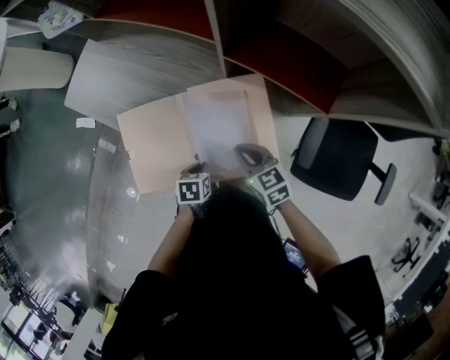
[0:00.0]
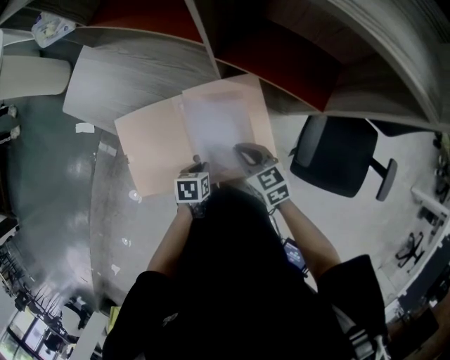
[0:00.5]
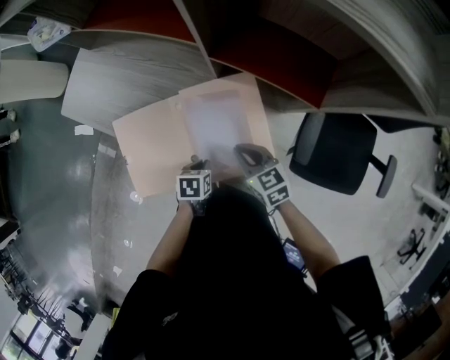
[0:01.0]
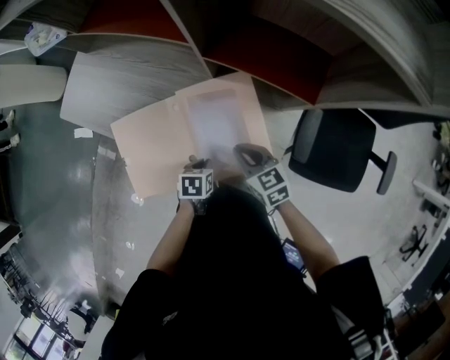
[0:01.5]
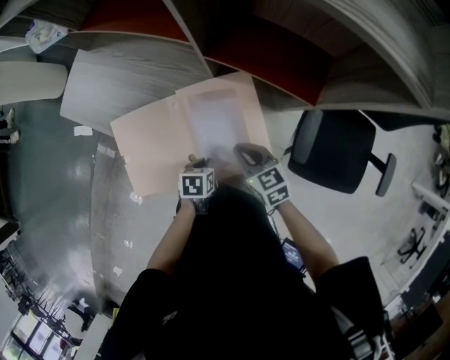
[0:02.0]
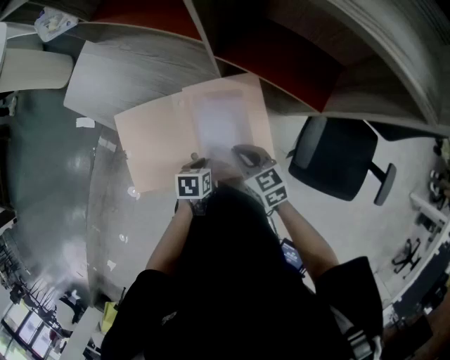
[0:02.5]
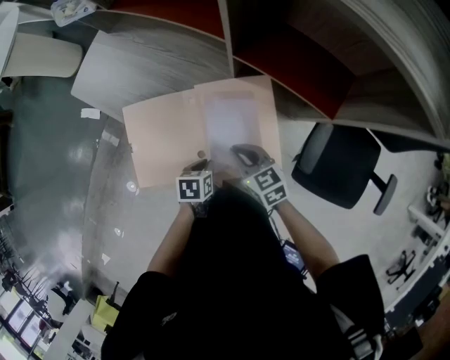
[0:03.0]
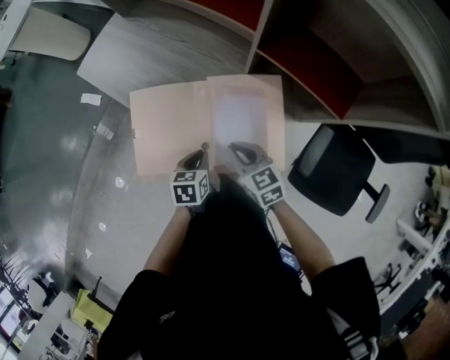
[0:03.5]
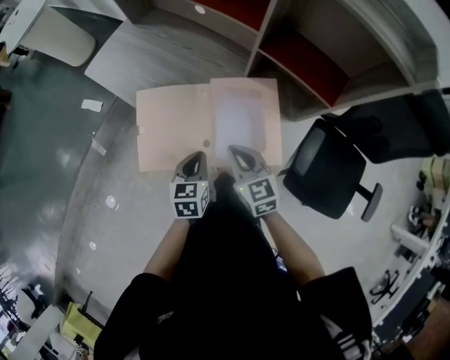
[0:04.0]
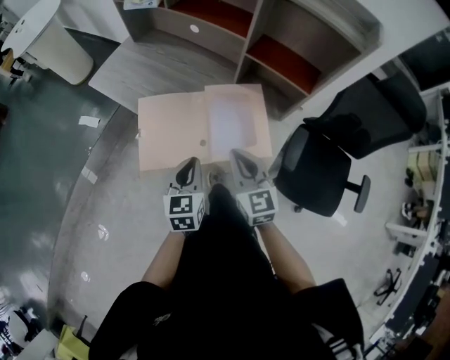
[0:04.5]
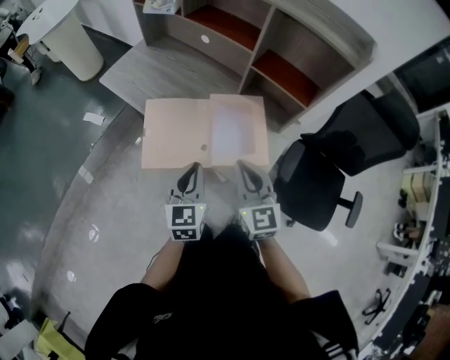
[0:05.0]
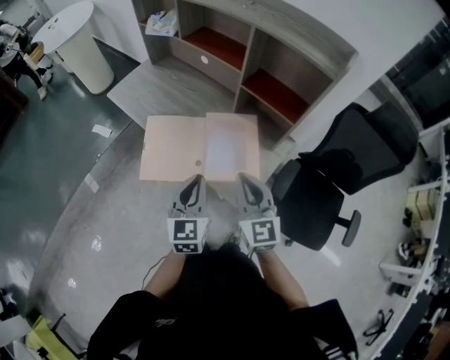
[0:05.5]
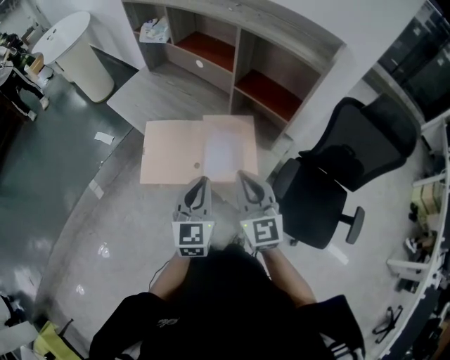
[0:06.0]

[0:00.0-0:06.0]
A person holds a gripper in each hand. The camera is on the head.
0:00.0 to 0:02.0: There are only small adjustments of the grippers.
0:02.0 to 0:04.0: The left gripper shifts some 15 cm upward and to the left, and changes its angle by approximately 40 degrees. The right gripper is displaced to the left and upward by some 10 cm.
0:04.0 to 0:06.0: The grippers both shift upward and backward by roughly 25 cm. The right gripper swivels approximately 30 degrees. The left gripper changes its angle by approximately 30 degrees.

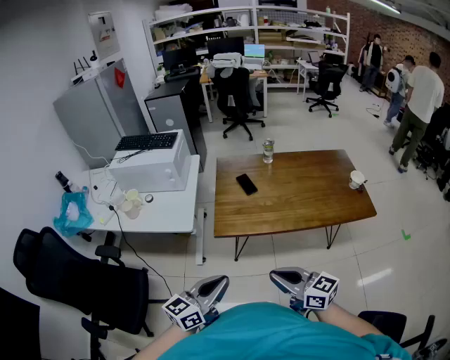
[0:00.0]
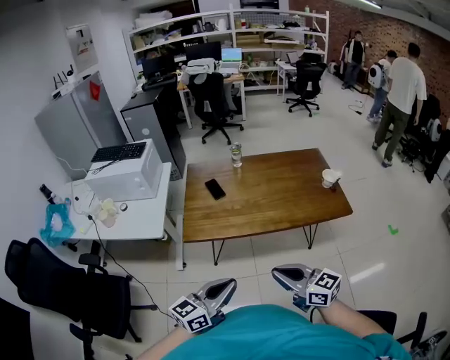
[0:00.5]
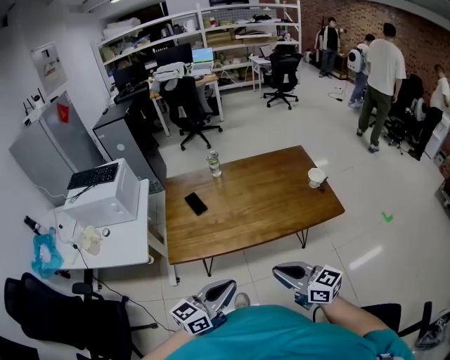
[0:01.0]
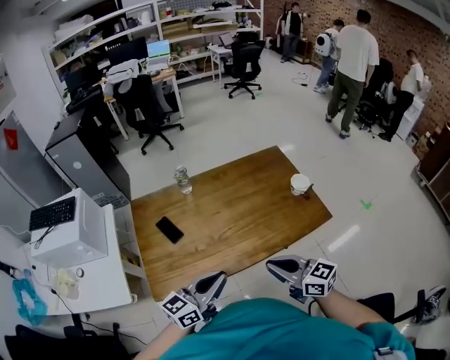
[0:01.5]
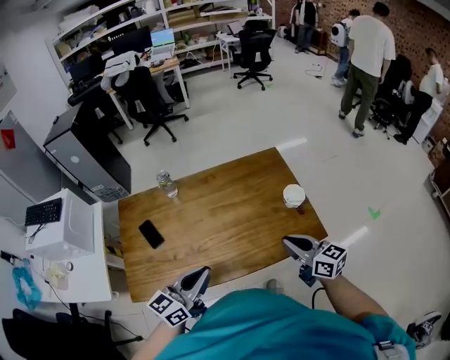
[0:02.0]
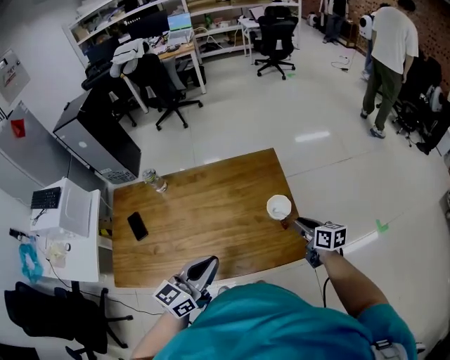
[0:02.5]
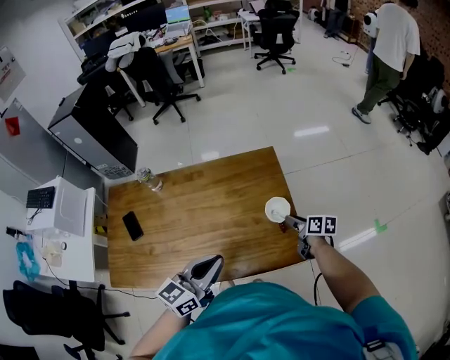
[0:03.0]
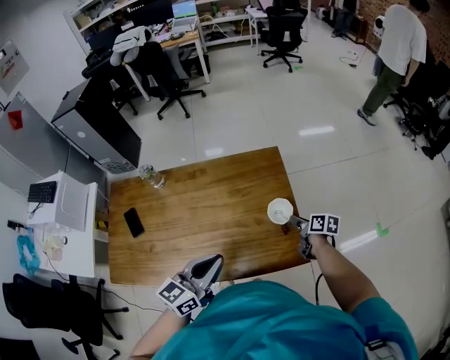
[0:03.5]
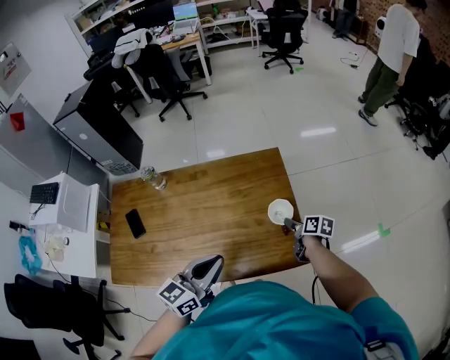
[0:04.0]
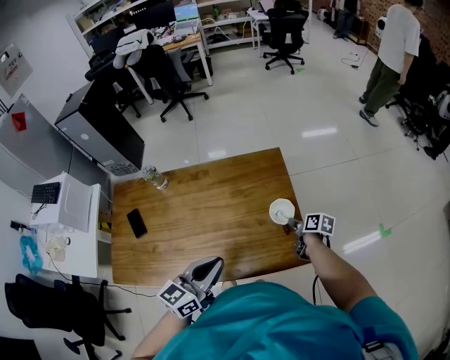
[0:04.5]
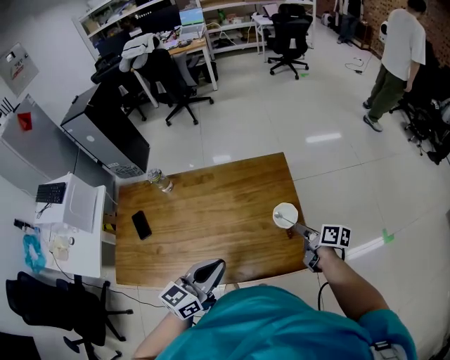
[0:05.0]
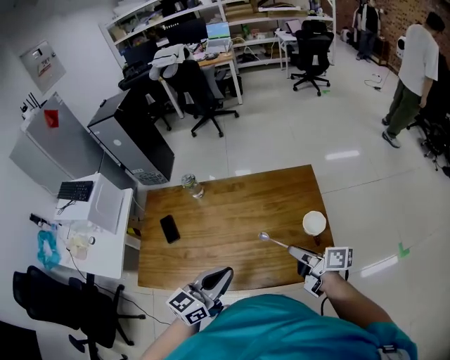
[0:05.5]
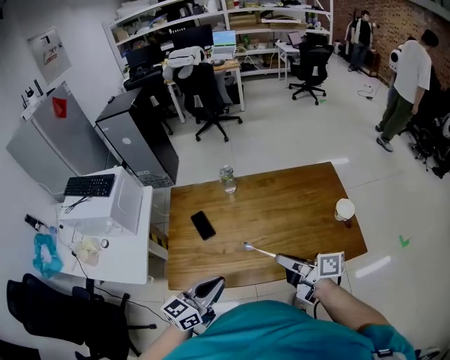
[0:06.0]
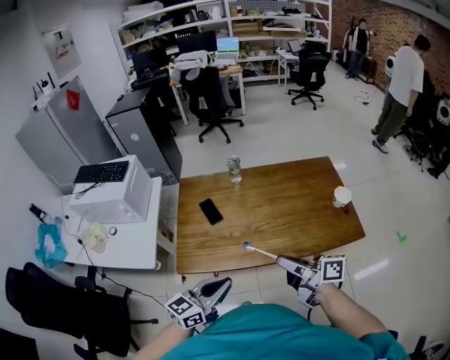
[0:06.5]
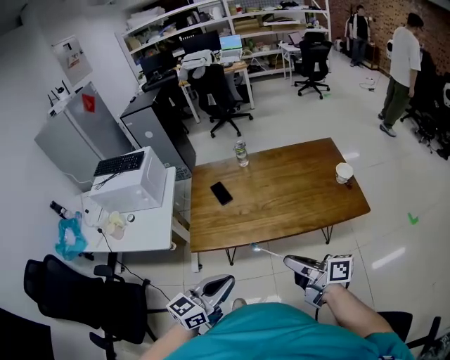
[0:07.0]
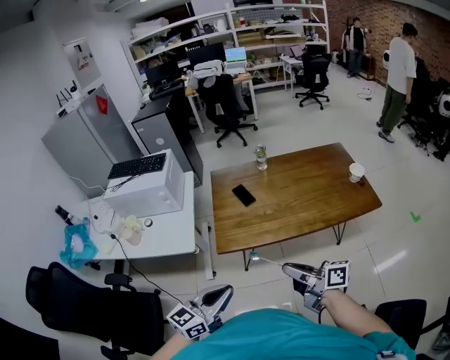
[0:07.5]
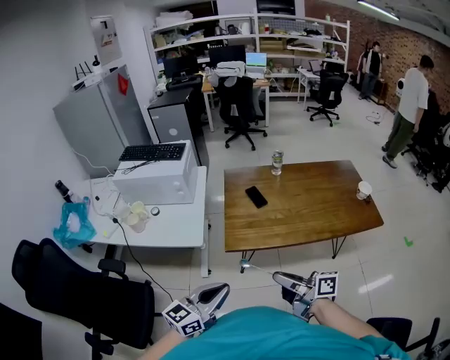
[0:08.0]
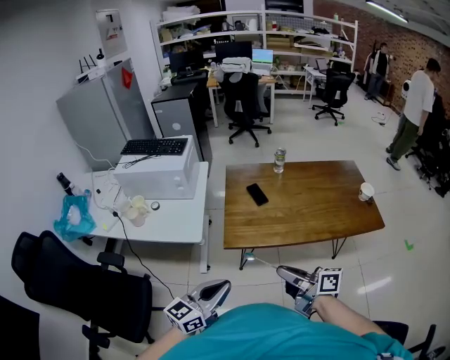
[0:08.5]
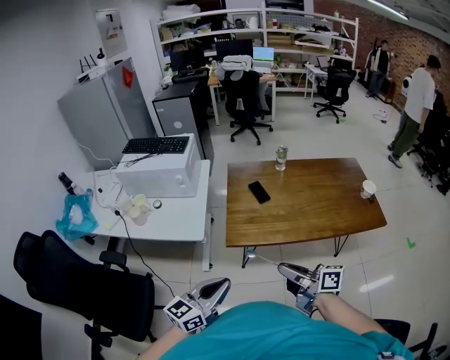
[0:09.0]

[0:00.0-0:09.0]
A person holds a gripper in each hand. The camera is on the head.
0:00.0 to 0:02.0: The two grippers travel together, forward and to the right, roughly 60 cm. The right gripper rotates roughly 20 degrees.
0:02.0 to 0:04.5: The right gripper moves forward, downward and to the right, approximately 40 cm, rolls clockwise, seen from behind, by approximately 40 degrees, and opens, then closes again; the left gripper moves to the right and forward, some 25 cm.
0:04.5 to 0:07.0: Both grippers are carried backward and to the left, approximately 60 cm. The right gripper is displaced upward by roughly 35 cm, and tilts its fingers some 40 degrees upward.
0:07.0 to 0:09.0: Both grippers travel together to the left, roughly 25 cm.

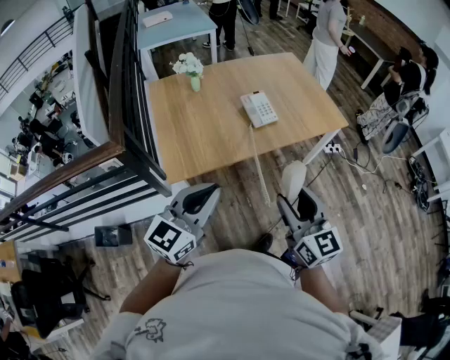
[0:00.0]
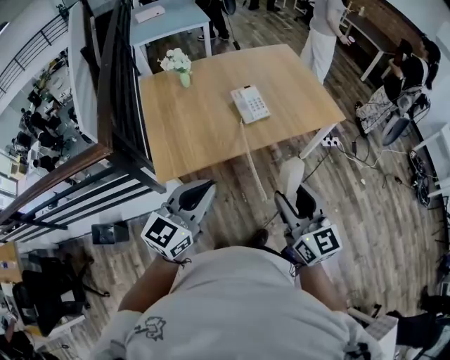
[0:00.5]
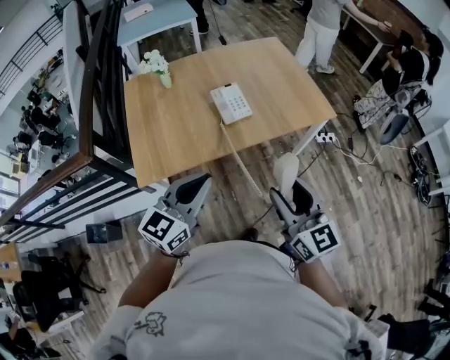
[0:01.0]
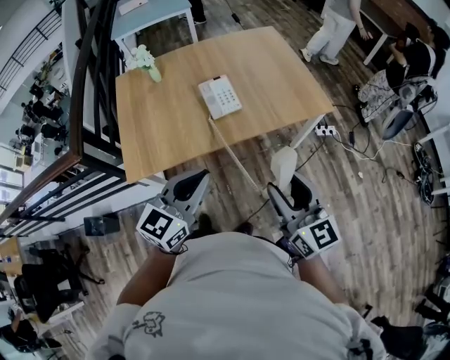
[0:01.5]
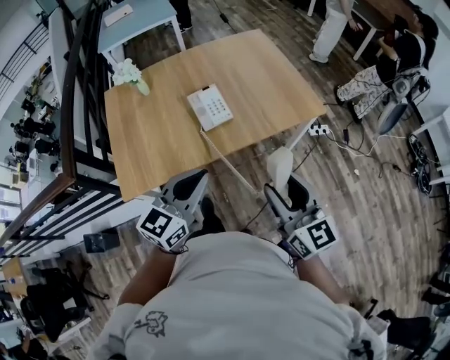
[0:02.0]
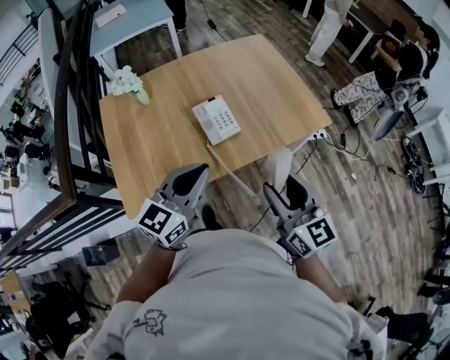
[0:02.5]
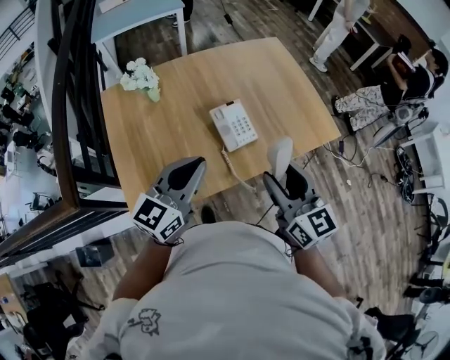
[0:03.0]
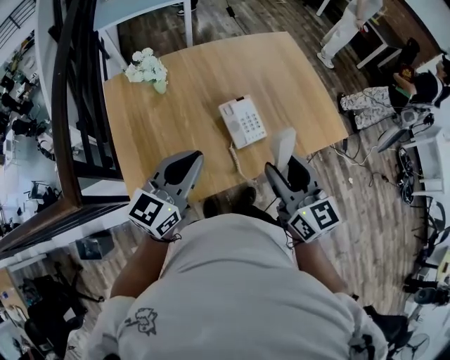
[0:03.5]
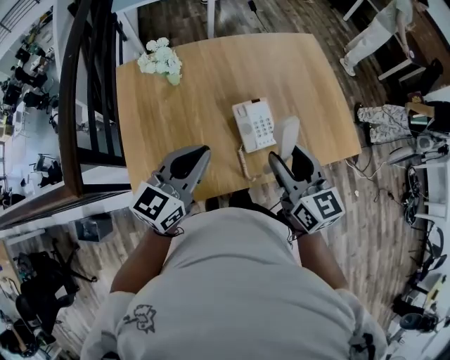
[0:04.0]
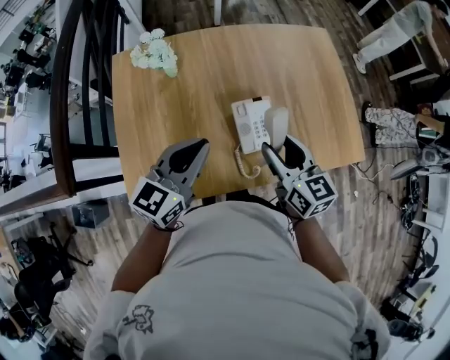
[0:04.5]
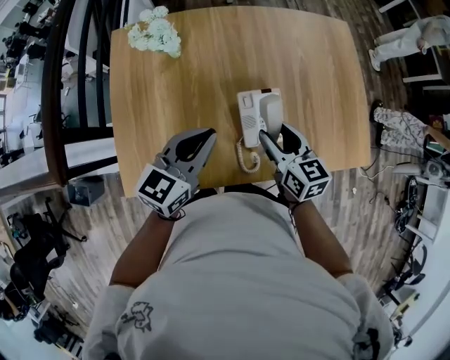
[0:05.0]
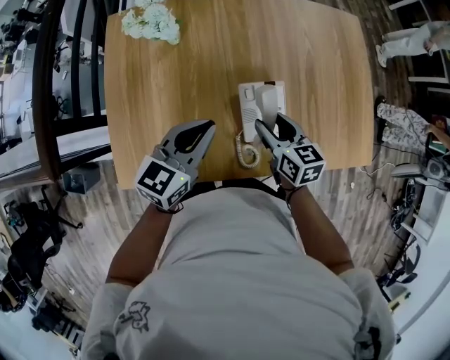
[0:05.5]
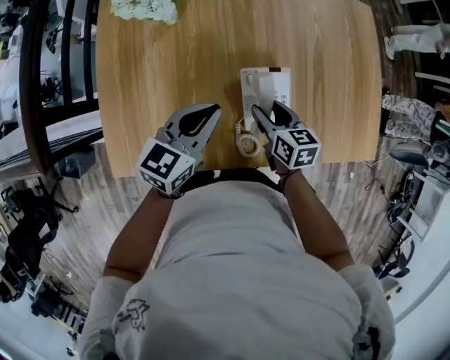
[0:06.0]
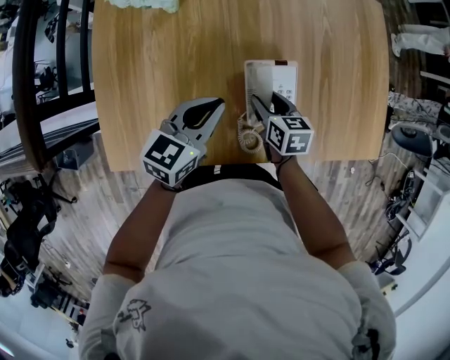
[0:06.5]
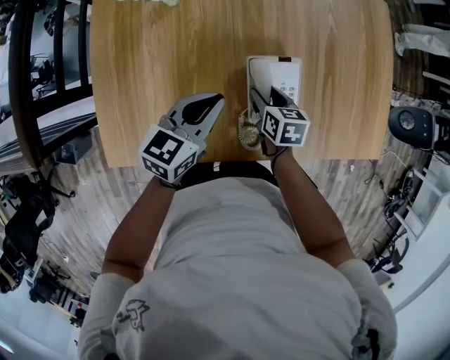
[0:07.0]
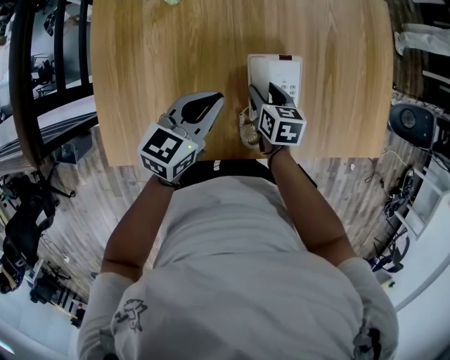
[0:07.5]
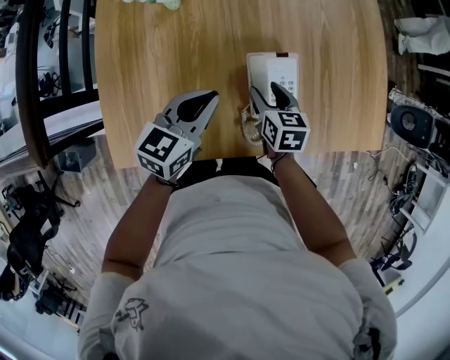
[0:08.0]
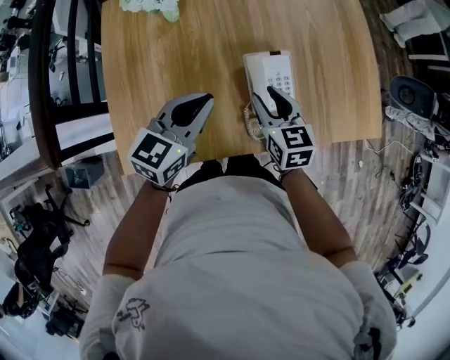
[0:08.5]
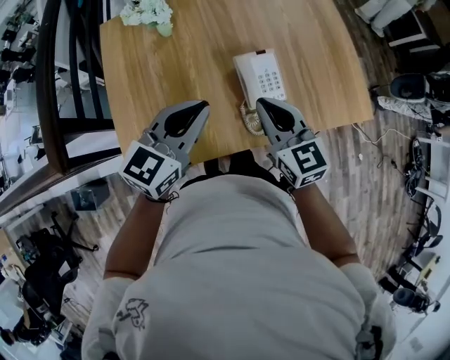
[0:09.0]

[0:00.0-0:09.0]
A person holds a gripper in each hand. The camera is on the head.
0:00.0 to 0:02.0: Both grippers travel together to the right and forward, approximately 25 cm.
0:02.0 to 0:04.5: The grippers both shift forward and to the left by roughly 35 cm. The right gripper swivels some 20 degrees.
0:04.5 to 0:07.0: The right gripper heads downward, covering some 30 cm, and tips its fingers downward by approximately 30 degrees, while the left gripper heads downward, covering some 20 cm.
0:07.0 to 0:09.0: The right gripper moves upward and backward, roughly 30 cm, tips its fingers upward by some 30 degrees, and closes, while the left gripper travels upward and backward by approximately 20 cm, and changes its angle by roughly 20 degrees.

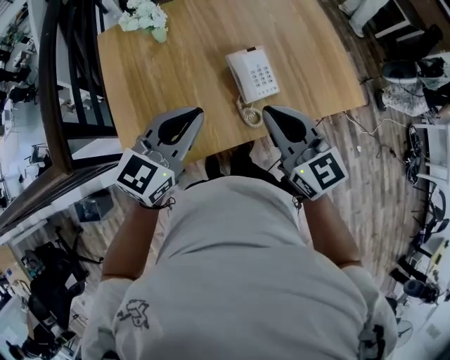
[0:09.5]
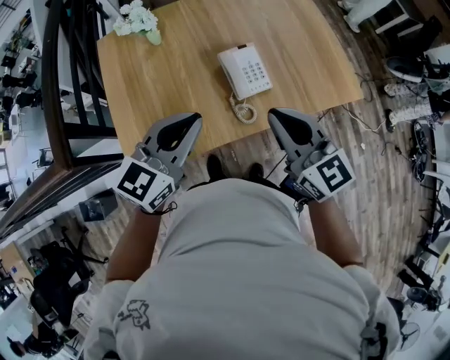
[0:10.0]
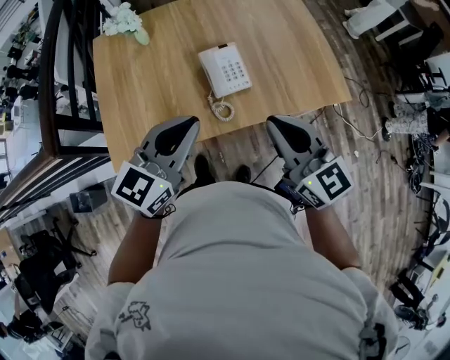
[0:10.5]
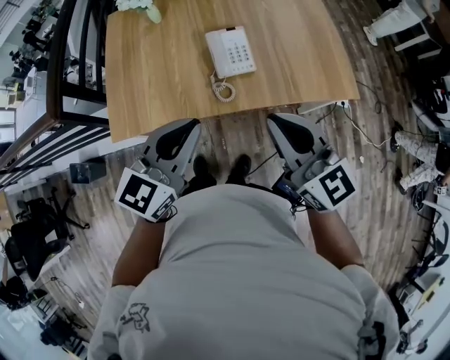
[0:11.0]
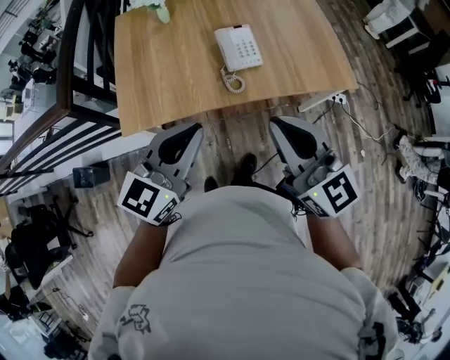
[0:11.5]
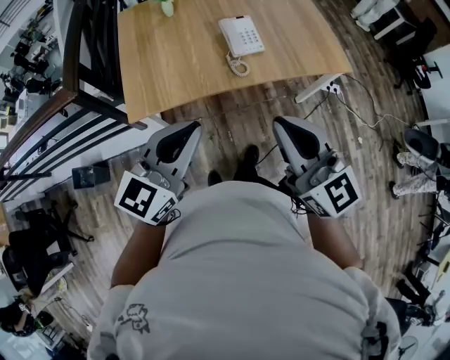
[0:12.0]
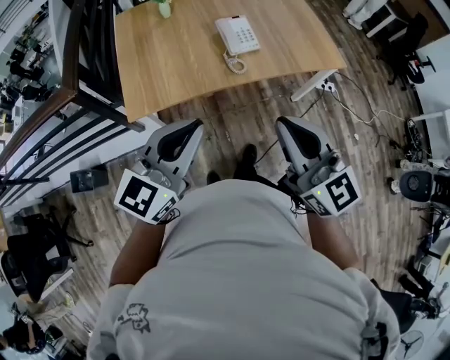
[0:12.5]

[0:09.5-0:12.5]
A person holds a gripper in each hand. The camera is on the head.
0:09.5 to 0:11.0: The grippers both shift to the right and backward by roughly 20 cm.
0:11.0 to 0:12.5: Both grippers travel together backward and to the left, about 25 cm.
